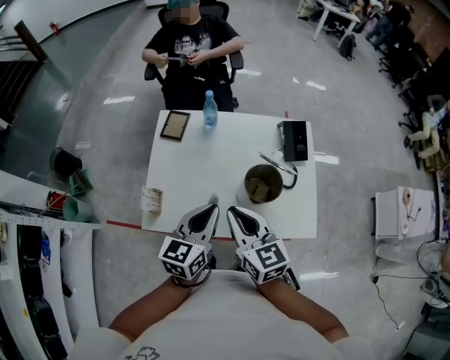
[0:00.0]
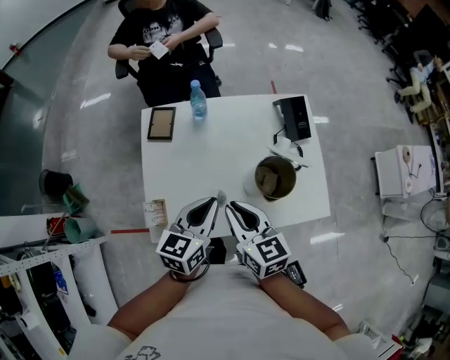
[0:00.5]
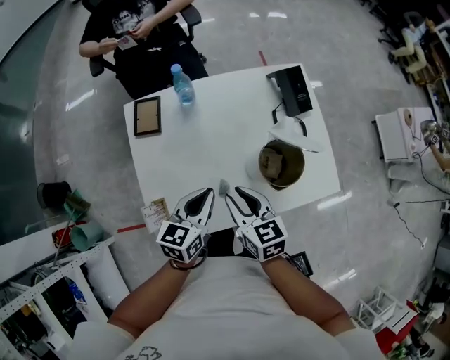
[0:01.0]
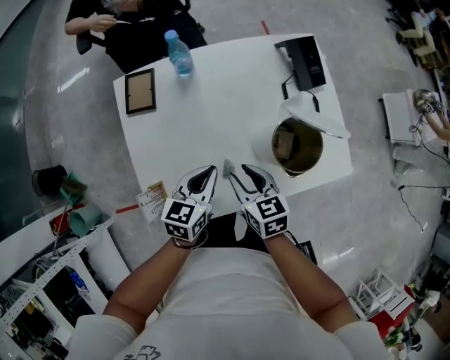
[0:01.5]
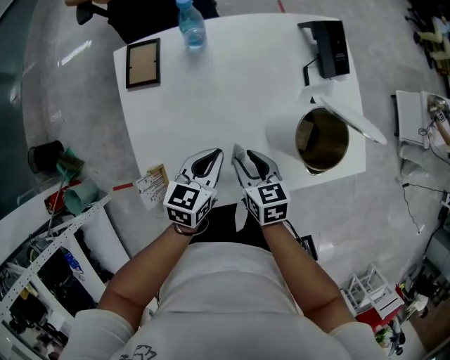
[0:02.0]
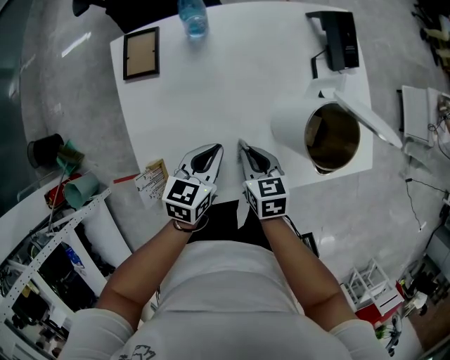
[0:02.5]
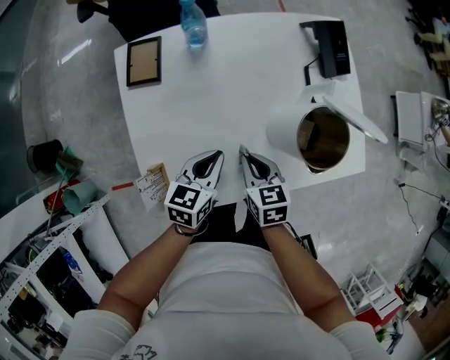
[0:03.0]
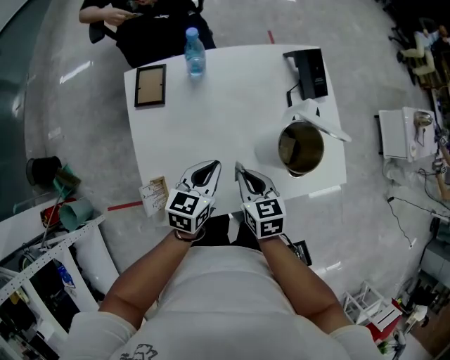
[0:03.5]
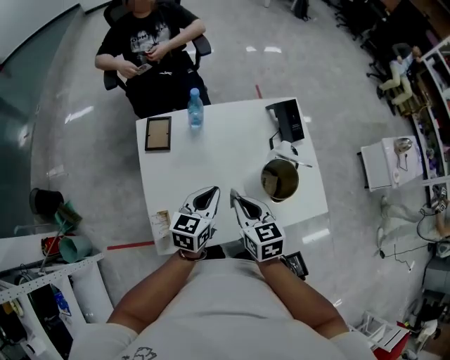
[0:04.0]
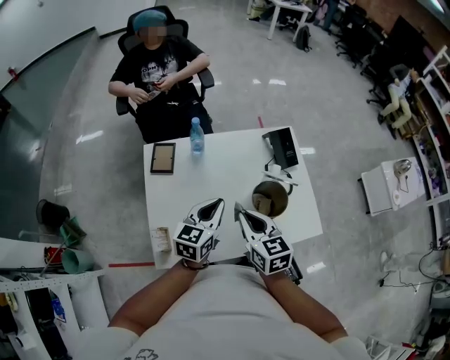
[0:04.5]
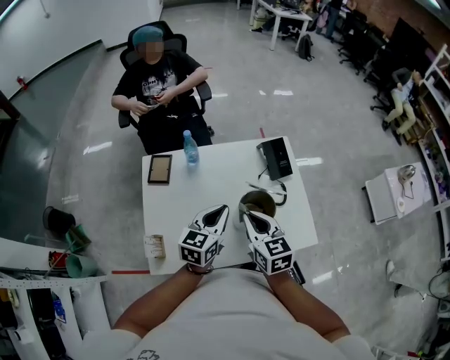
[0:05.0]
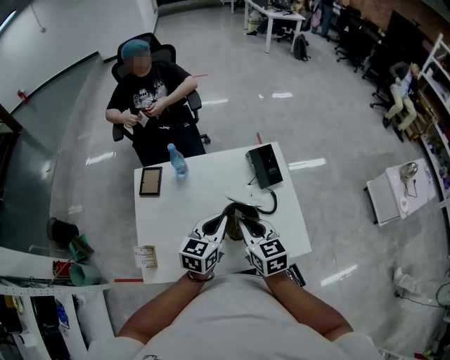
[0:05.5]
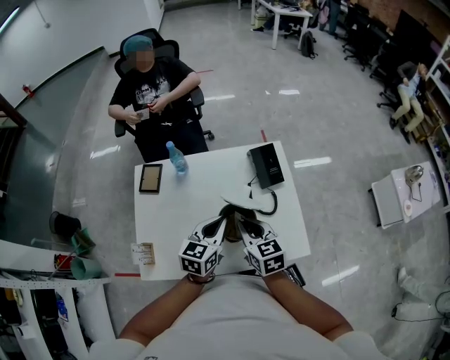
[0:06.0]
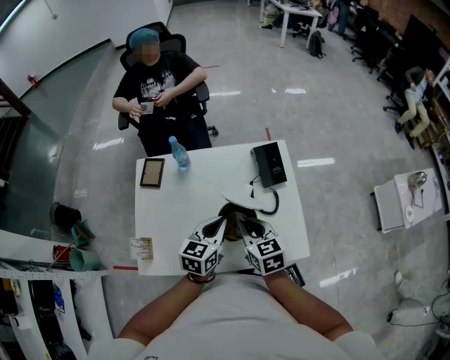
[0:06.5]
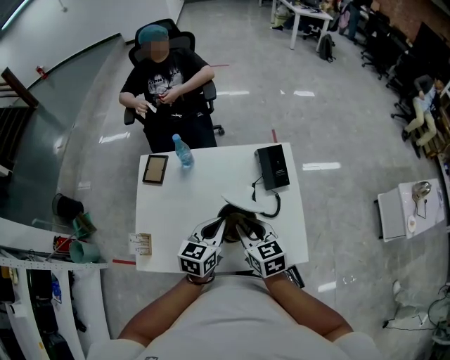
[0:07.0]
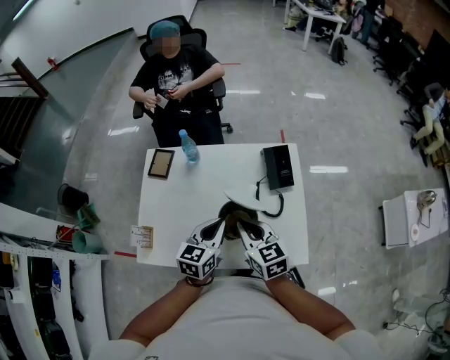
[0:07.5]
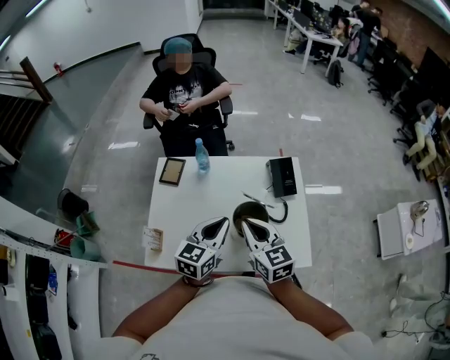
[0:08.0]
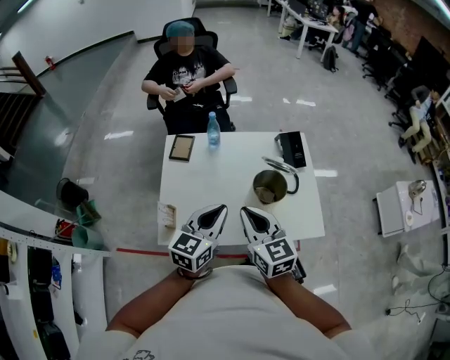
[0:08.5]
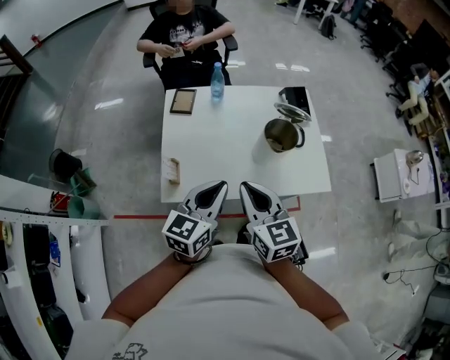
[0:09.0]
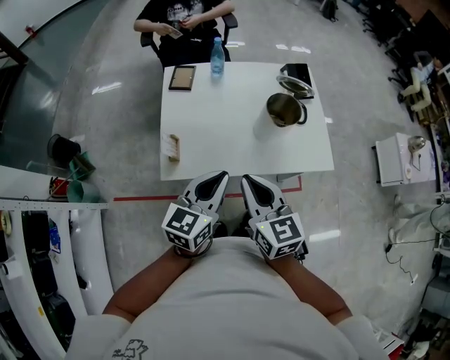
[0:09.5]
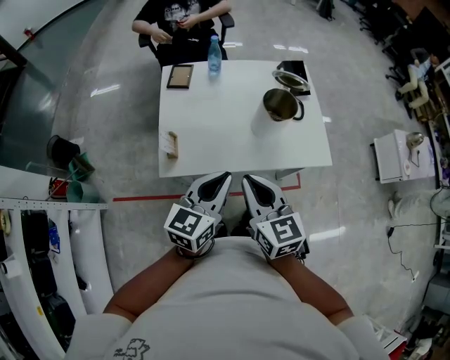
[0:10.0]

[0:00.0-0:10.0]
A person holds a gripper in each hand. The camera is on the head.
0:00.0 to 0:02.0: The grippers both shift downward by about 25 cm. The right gripper turns by some 30 degrees, and opens up. The left gripper rotates roughly 30 degrees.
0:02.0 to 0:04.0: The grippers both shift upward by roughly 15 cm. The right gripper closes its fingers.
0:04.0 to 0:06.0: The grippers both shift to the right by some 15 cm.
0:06.0 to 0:08.0: The grippers both shift upward by approximately 5 cm.
0:08.0 to 0:10.0: Both grippers move backward and to the left, roughly 25 cm.

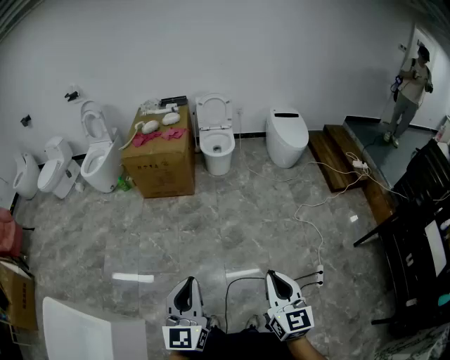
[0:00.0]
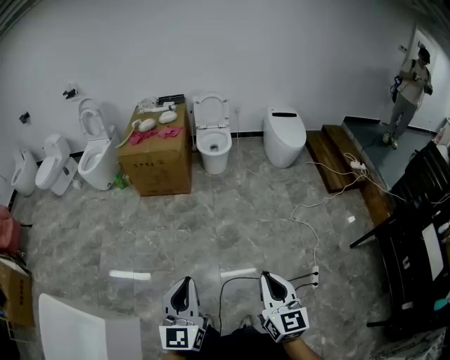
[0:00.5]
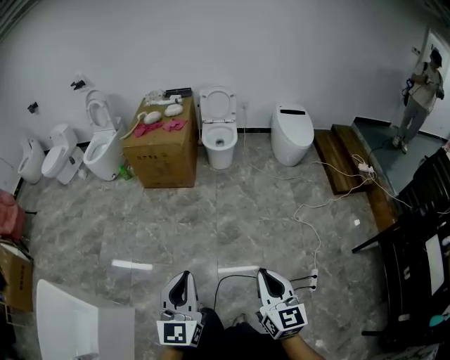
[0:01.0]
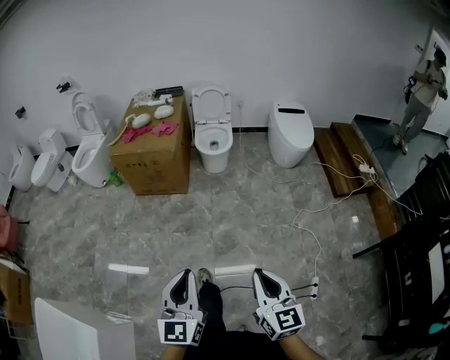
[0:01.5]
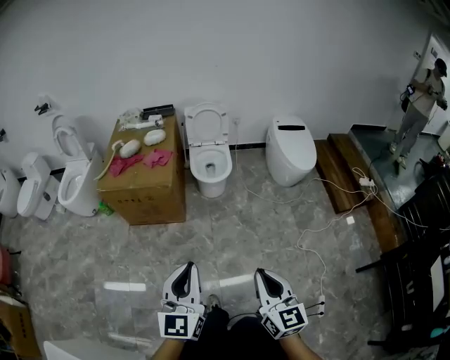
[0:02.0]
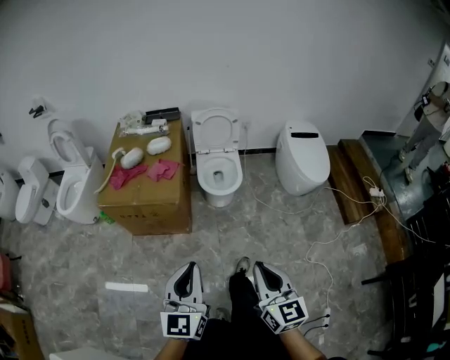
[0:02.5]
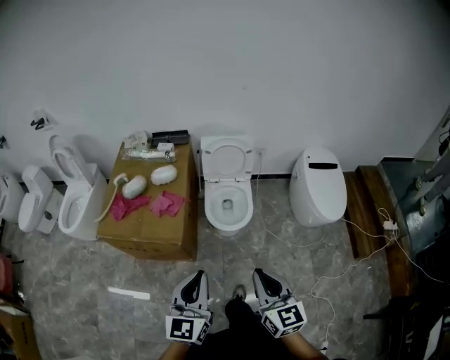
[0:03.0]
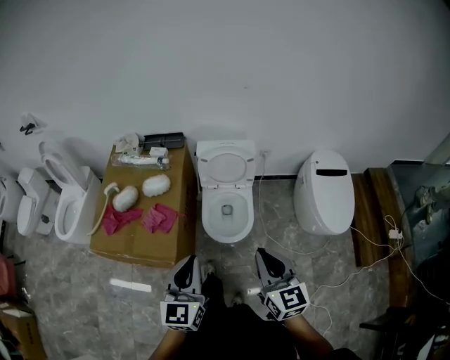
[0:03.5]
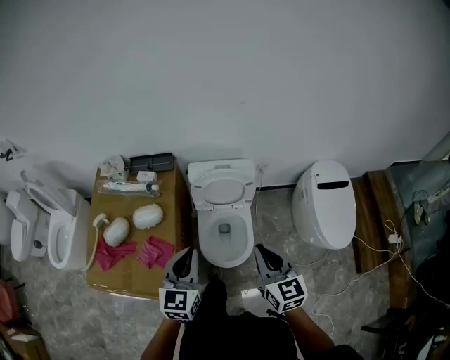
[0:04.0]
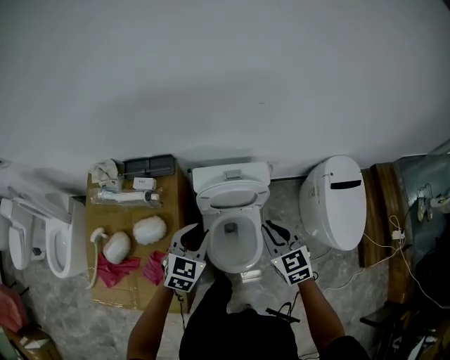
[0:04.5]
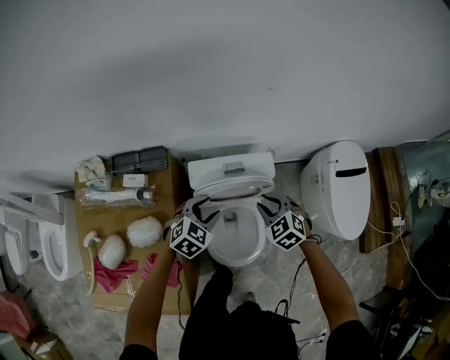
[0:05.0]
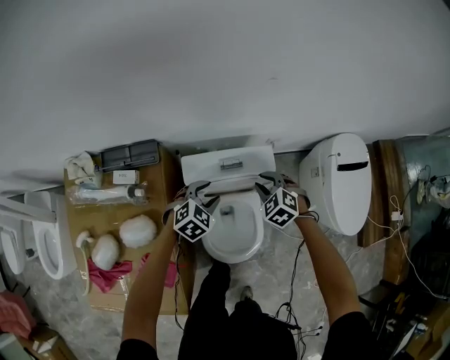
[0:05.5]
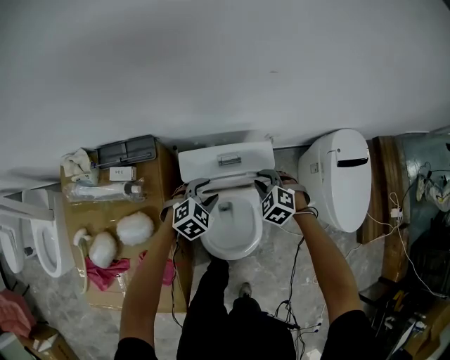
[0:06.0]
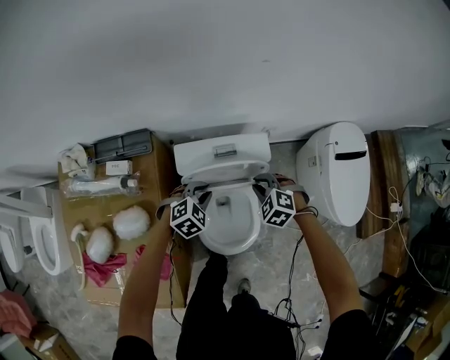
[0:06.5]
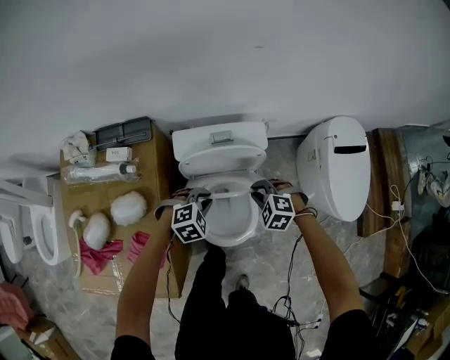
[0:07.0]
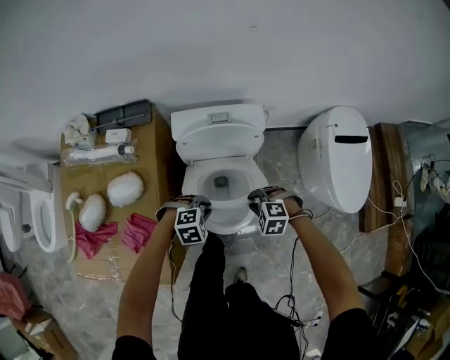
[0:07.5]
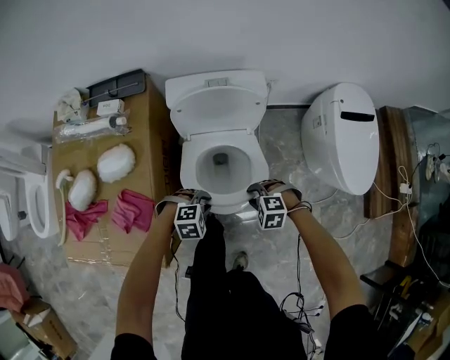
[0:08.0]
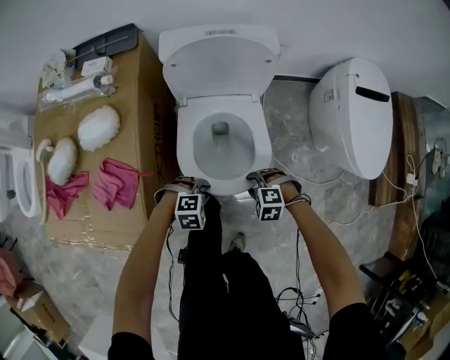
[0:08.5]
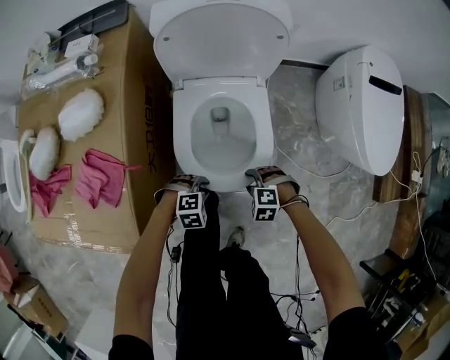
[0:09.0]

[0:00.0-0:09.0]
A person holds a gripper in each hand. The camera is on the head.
0:00.0 to 0:02.0: The pair of grippers is taken forward, roughly 40 cm.
0:02.0 to 0:04.5: The pair of grippers is taken forward, some 1 m. The left gripper points its fingers approximately 30 degrees further downward, and opens. The right gripper rotates approximately 30 degrees.
0:04.5 to 0:07.0: Both grippers travel together downward, some 20 cm. The left gripper swivels about 50 degrees, and opens, then closes again. Meanwhile the right gripper tips its fingers downward by about 30 degrees.
0:07.0 to 0:09.0: The two grippers go about 30 cm downward. The right gripper opens up.

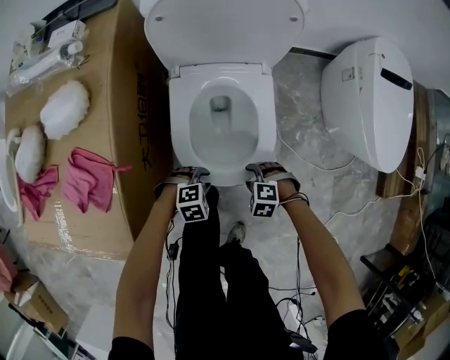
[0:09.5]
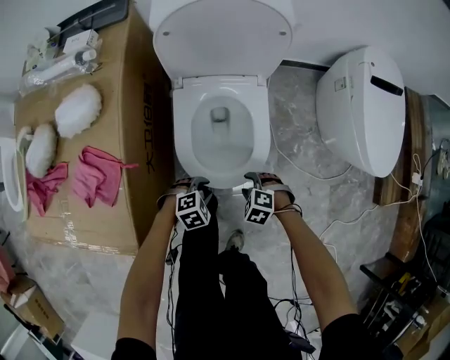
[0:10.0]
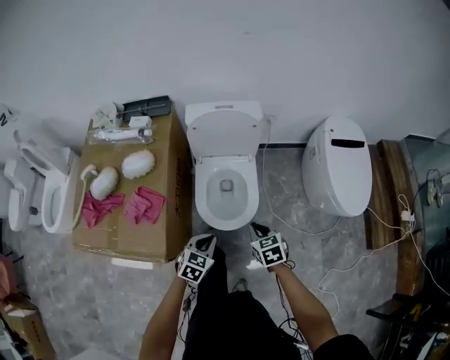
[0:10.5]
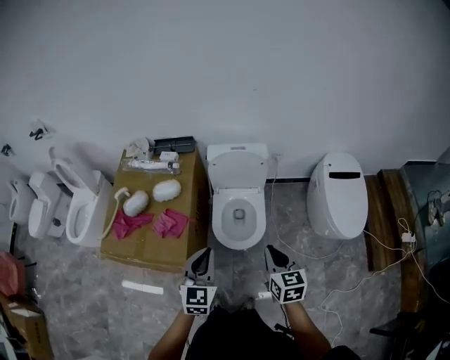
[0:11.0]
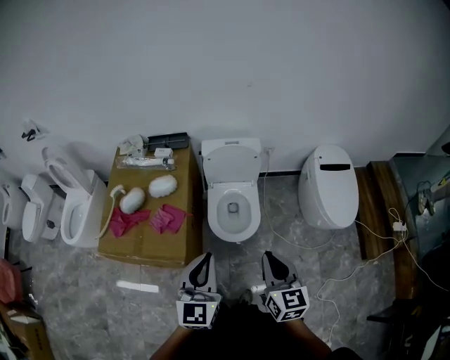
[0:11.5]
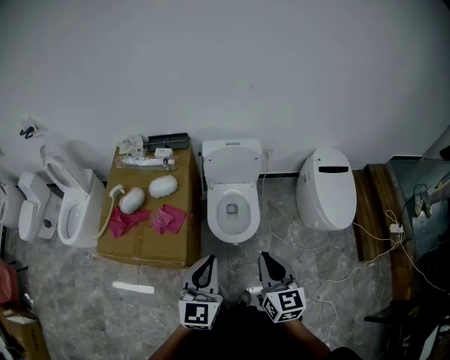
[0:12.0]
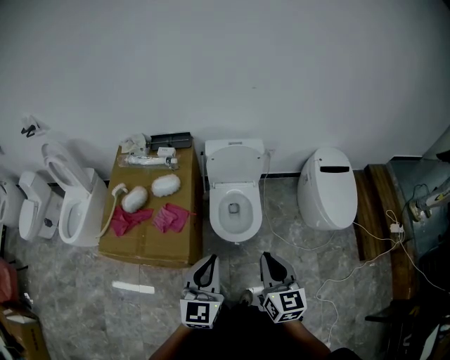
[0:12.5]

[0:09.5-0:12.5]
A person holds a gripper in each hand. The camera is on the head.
0:09.5 to 0:11.0: The grippers both shift upward by about 60 cm. The right gripper tips its fingers upward by some 50 degrees, and closes up. The left gripper tilts its fingers approximately 60 degrees upward, and closes its fingers.
0:11.0 to 0:12.5: The left gripper goes roughly 10 cm backward and upward, while the right gripper shifts roughly 15 cm upward, backward and to the left.

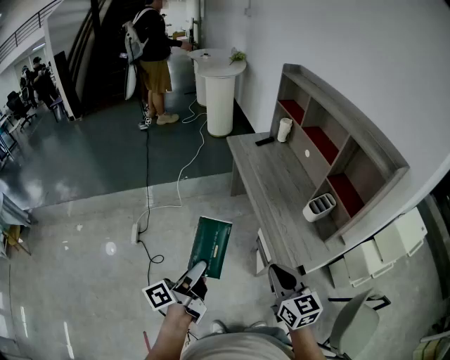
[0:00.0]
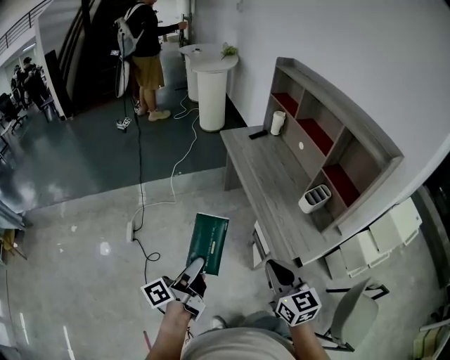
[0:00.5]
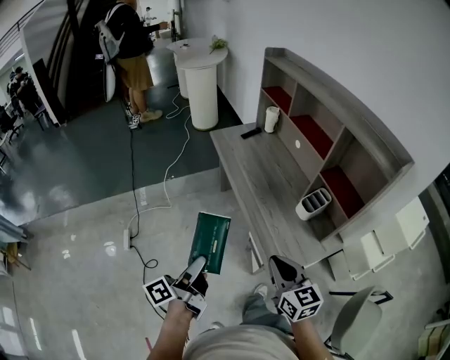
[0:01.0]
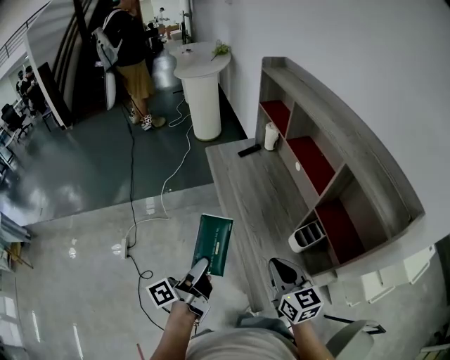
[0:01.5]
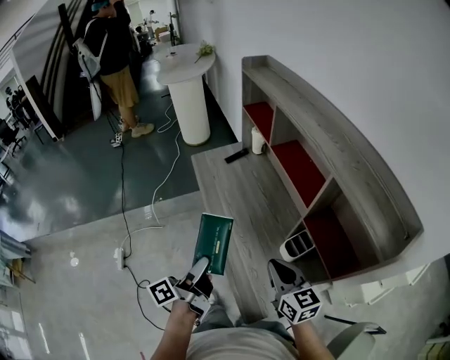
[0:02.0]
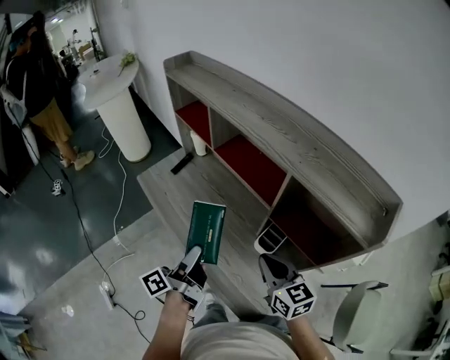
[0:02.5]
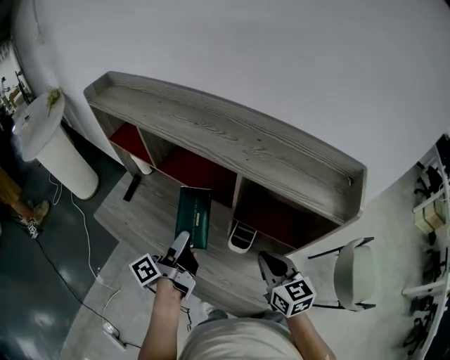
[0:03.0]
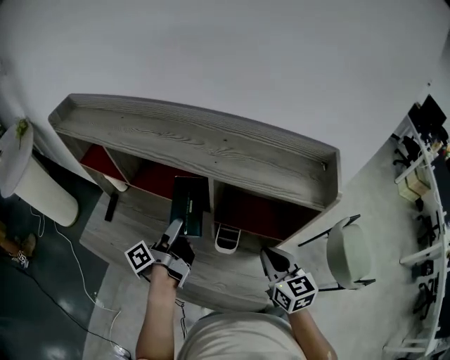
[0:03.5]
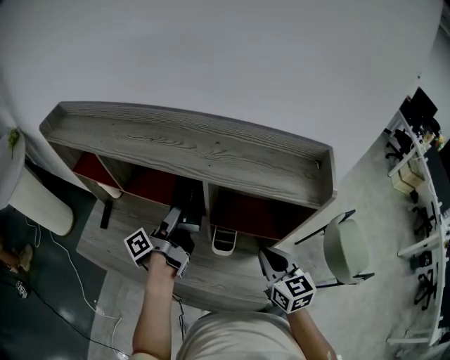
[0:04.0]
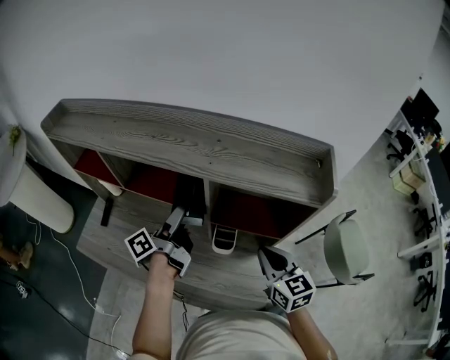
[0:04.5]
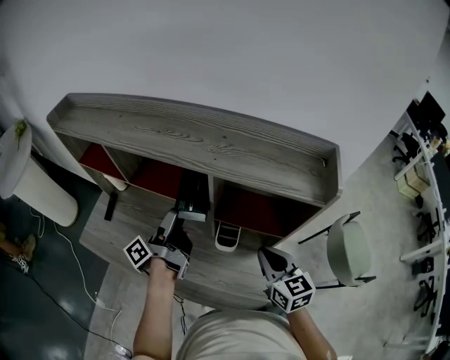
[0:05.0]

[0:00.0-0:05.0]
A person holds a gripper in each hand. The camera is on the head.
0:00.0 to 0:02.5: The pair of grippers is taken forward and to the right, roughly 50 cm. The left gripper rotates roughly 20 degrees. Meanwhile the right gripper rotates some 20 degrees.
0:02.5 to 0:05.0: The left gripper moves about 20 cm, and rotates some 30 degrees, while the right gripper shifts by roughly 10 cm, and turns by approximately 30 degrees.
